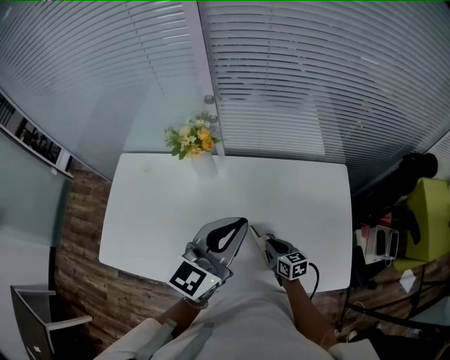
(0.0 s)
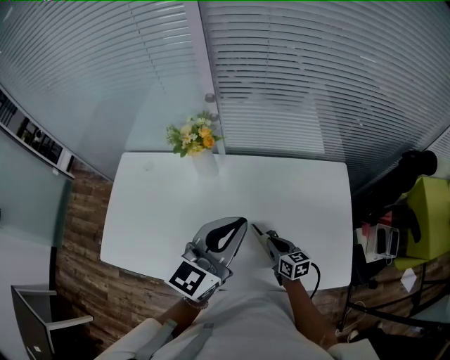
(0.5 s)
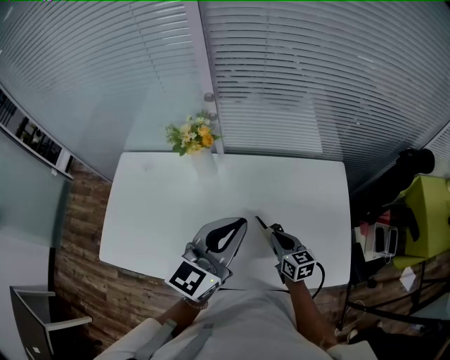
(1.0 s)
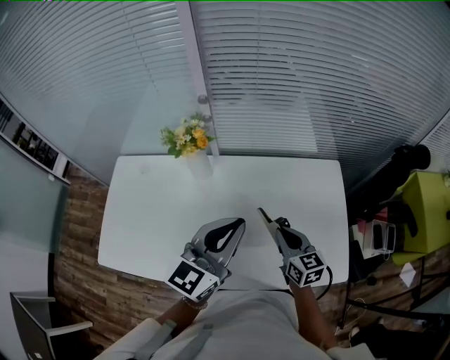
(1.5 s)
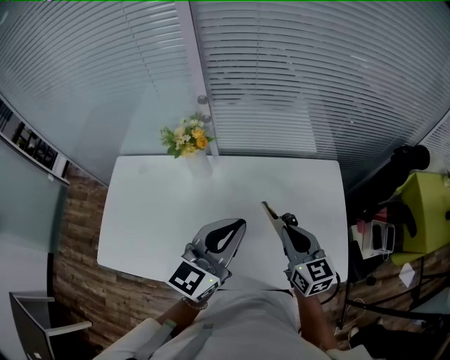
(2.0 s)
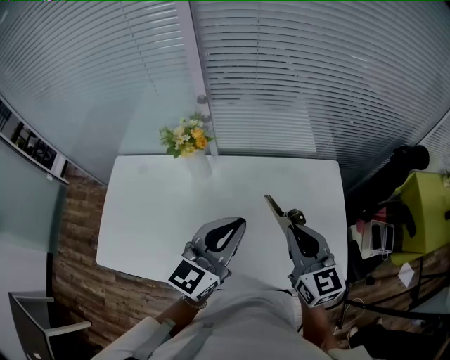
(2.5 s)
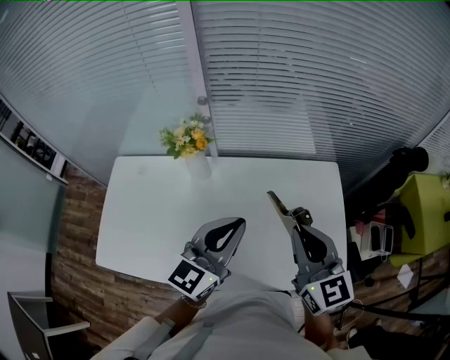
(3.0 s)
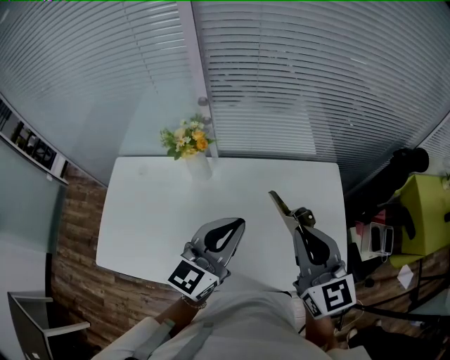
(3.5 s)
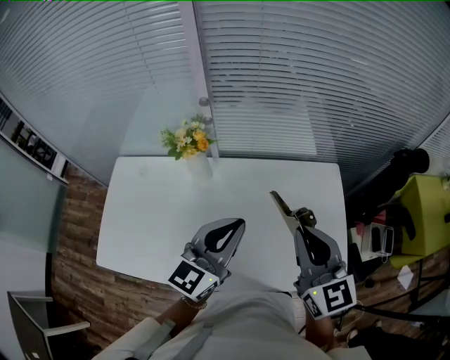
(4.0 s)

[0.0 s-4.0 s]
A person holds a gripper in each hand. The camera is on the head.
0.0 to 2.0 s: The right gripper shifts some 25 cm upward, and rotates about 20 degrees.
2.0 to 4.0 s: The right gripper heads upward, covering some 15 cm.

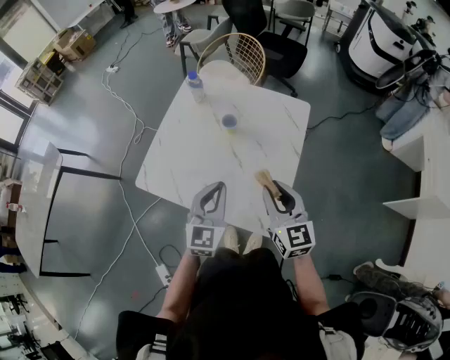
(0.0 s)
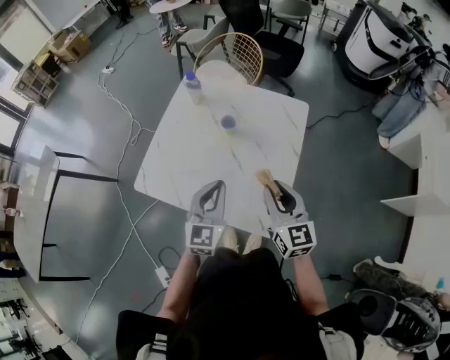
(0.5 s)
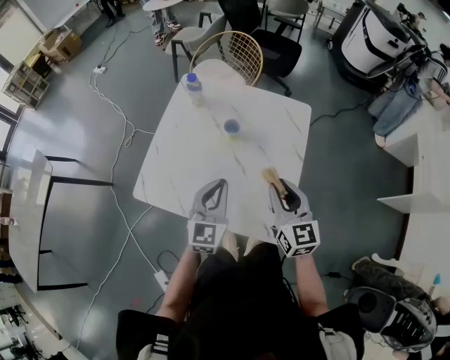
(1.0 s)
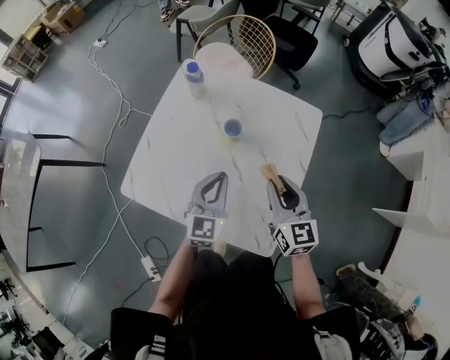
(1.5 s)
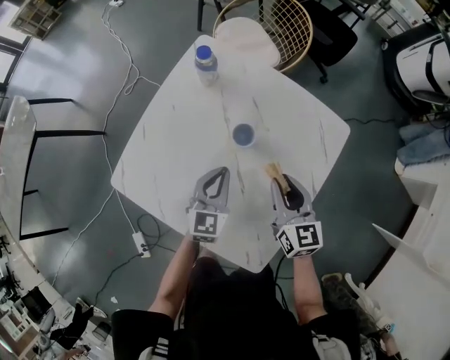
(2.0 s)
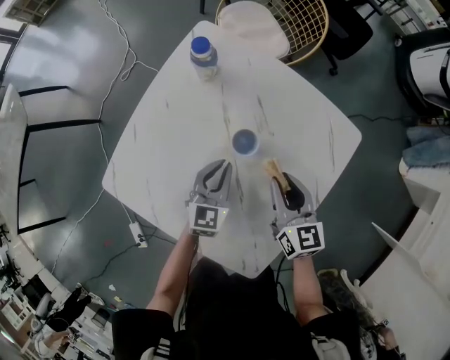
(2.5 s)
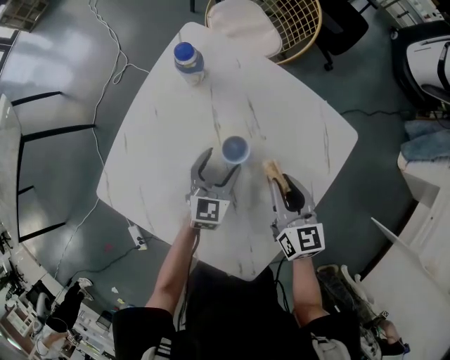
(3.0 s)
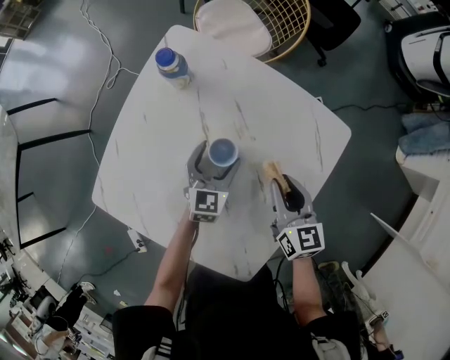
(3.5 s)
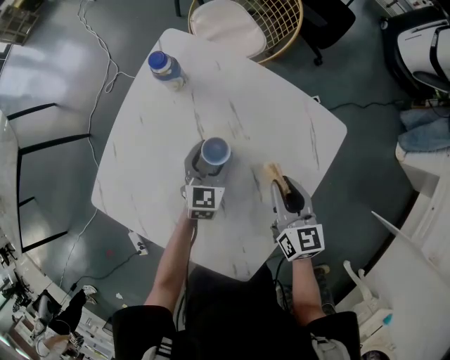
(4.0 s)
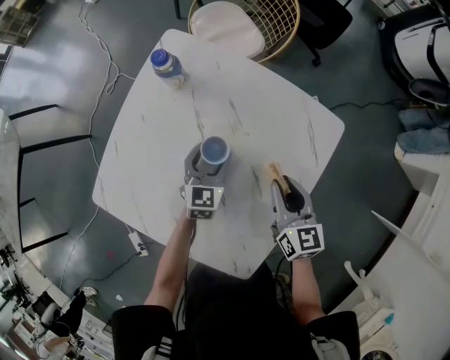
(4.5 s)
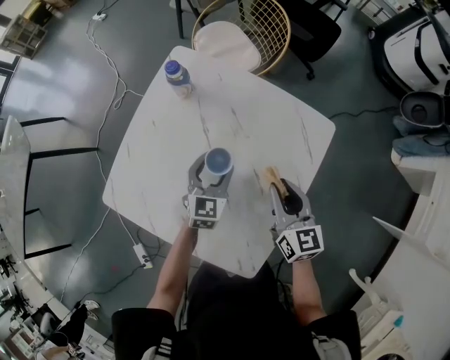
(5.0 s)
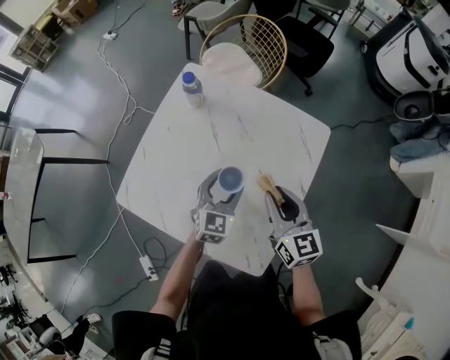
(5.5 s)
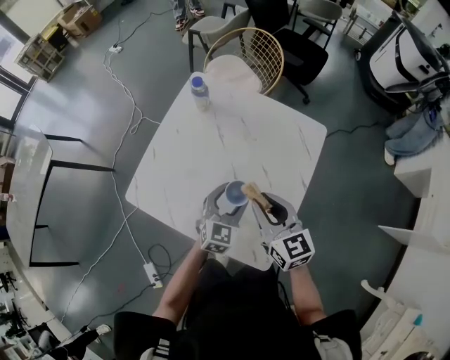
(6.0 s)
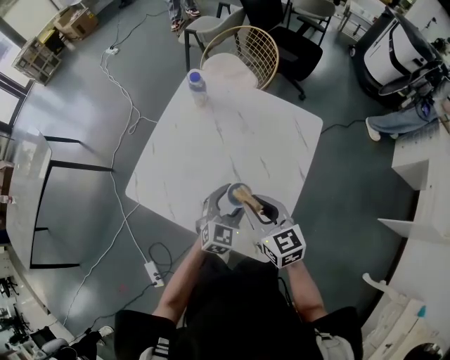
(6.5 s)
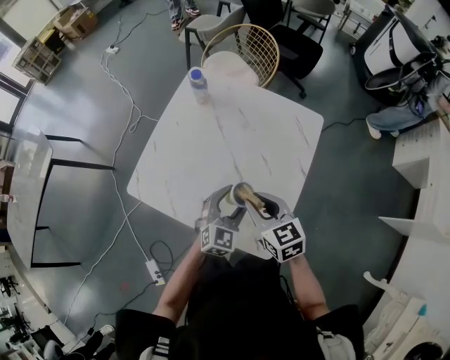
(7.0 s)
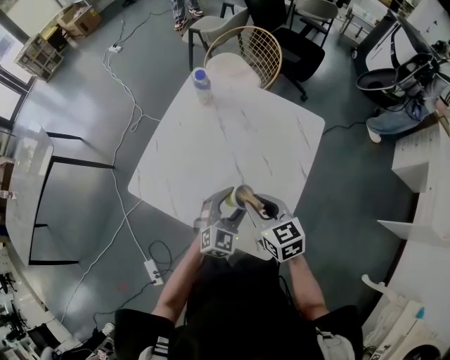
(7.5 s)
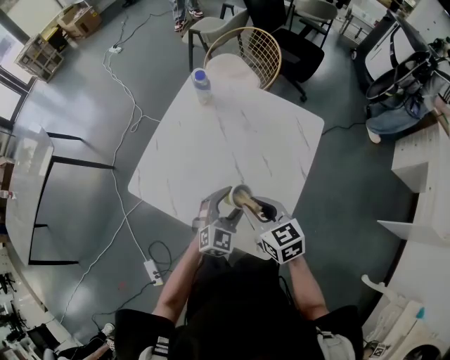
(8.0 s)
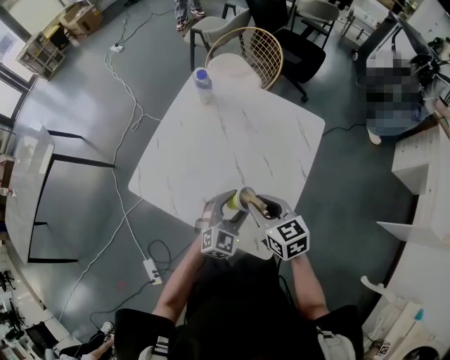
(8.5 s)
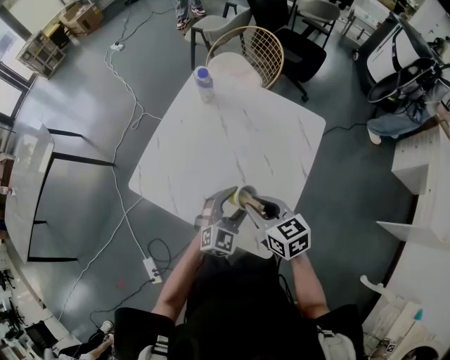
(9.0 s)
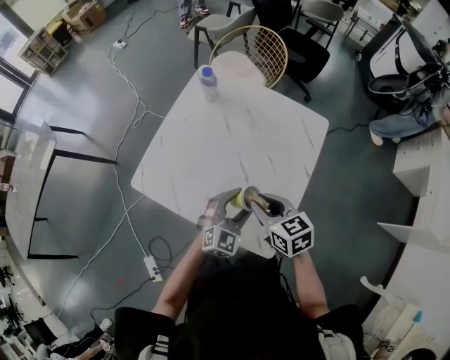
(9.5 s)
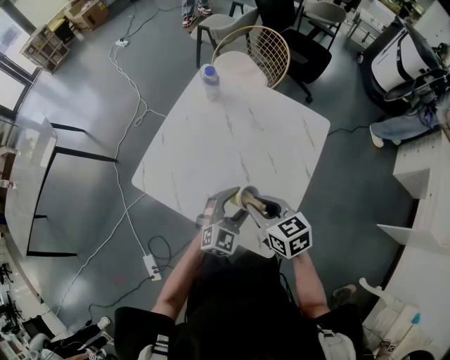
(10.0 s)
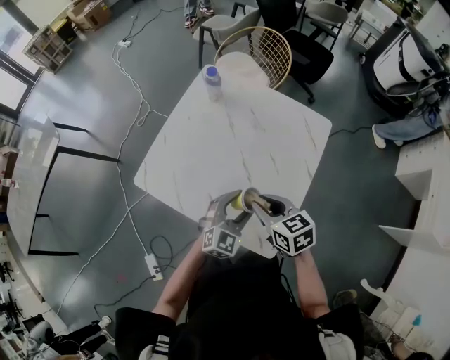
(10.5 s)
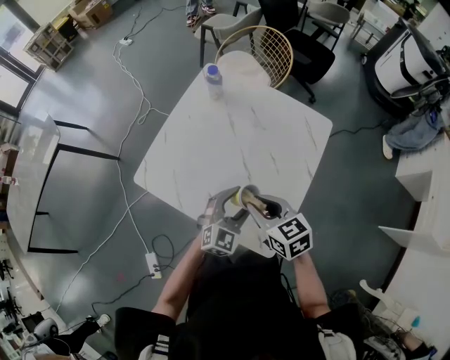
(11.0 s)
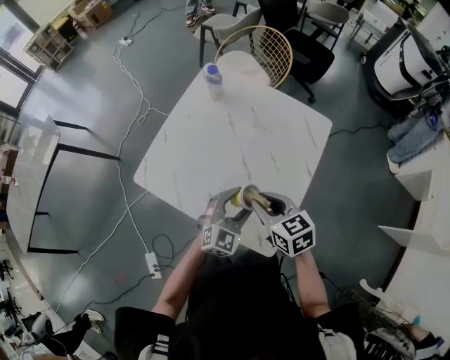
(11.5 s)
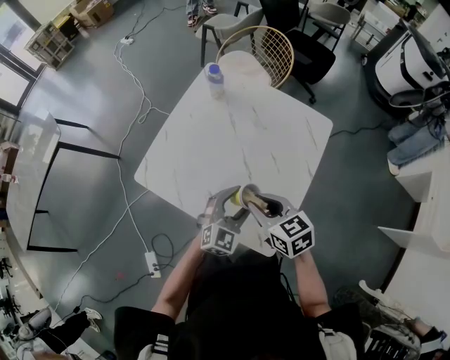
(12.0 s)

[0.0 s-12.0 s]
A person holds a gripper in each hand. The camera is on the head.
0.0 to 2.0 s: Both grippers move forward and downward, about 25 cm.
2.0 to 4.0 s: The right gripper travels to the right and downward by approximately 10 cm. Meanwhile the left gripper shifts approximately 15 cm forward and downward, and opens its fingers.
4.0 to 6.0 s: The right gripper travels upward, backward and to the left by roughly 25 cm. The left gripper heads backward and upward, covering approximately 25 cm.
6.0 to 8.0 s: Both grippers travel together backward, about 5 cm.
8.0 to 12.0 s: There are only small adjustments of the grippers.

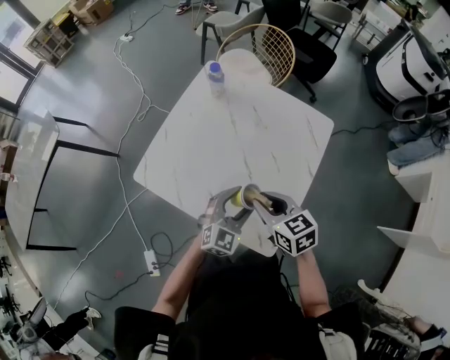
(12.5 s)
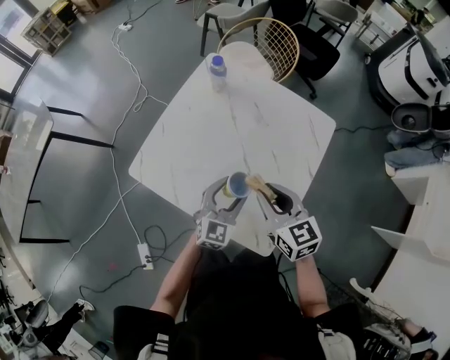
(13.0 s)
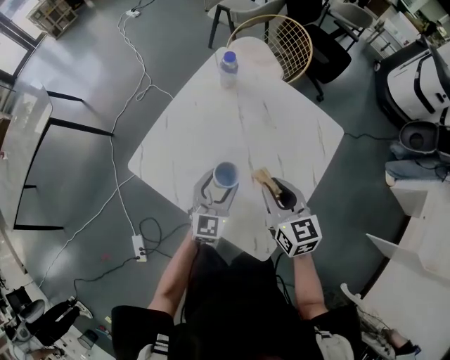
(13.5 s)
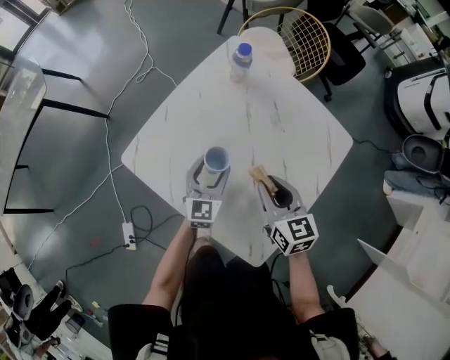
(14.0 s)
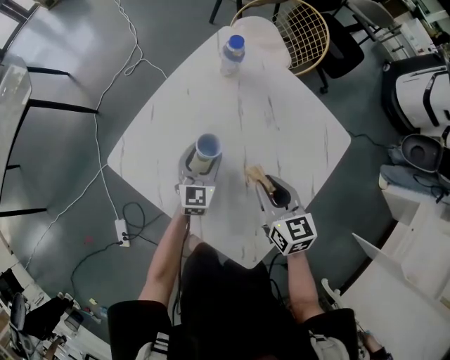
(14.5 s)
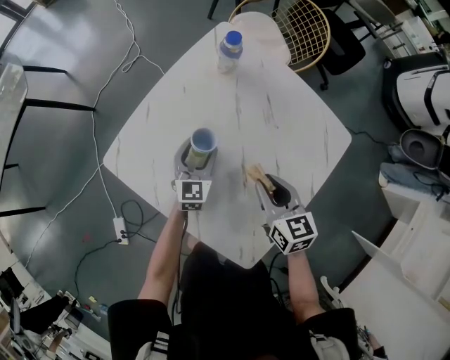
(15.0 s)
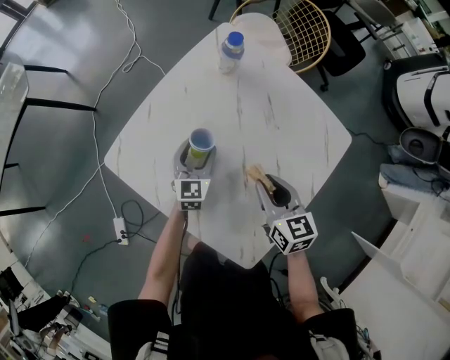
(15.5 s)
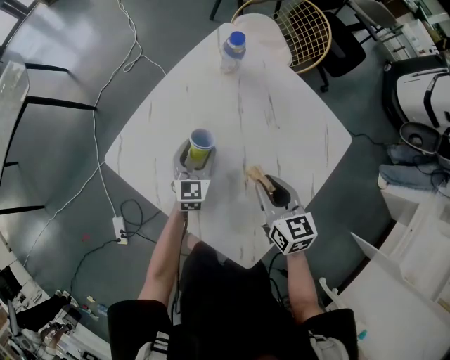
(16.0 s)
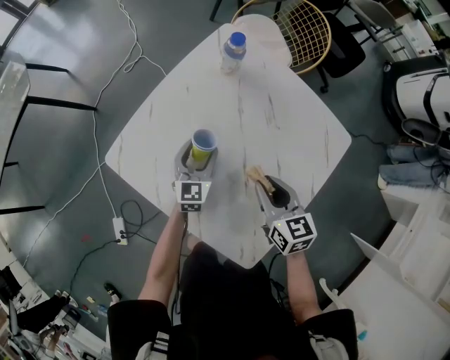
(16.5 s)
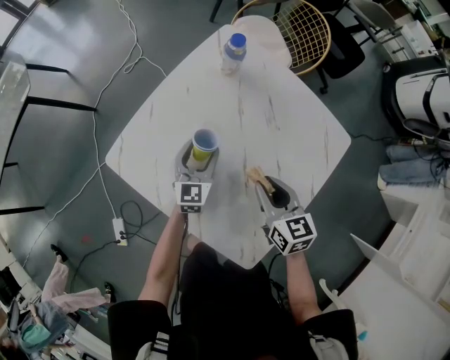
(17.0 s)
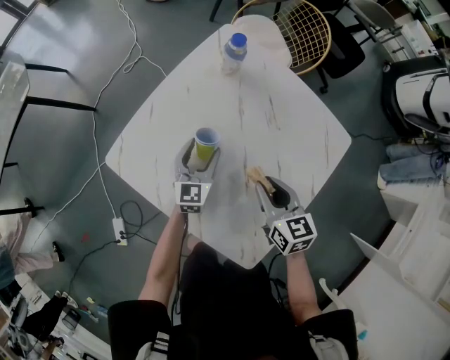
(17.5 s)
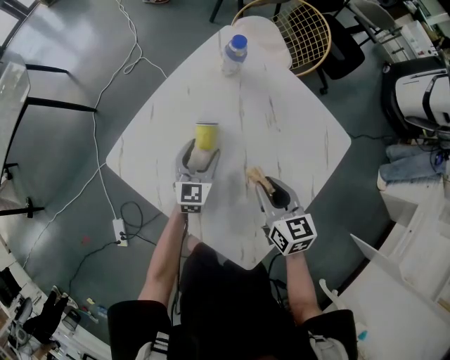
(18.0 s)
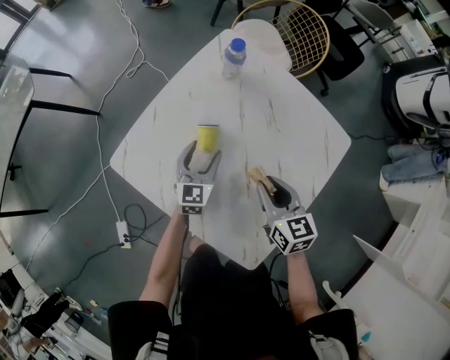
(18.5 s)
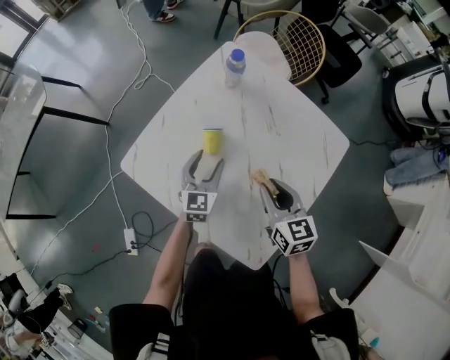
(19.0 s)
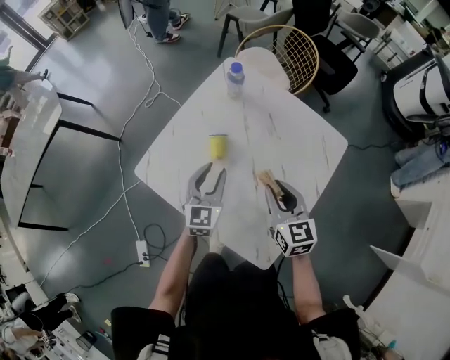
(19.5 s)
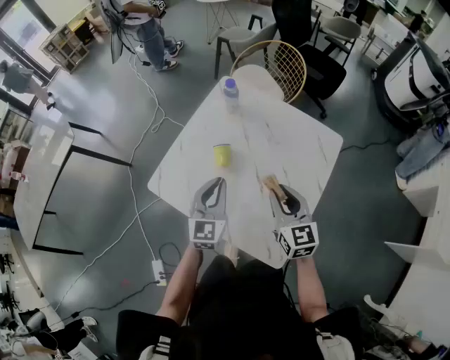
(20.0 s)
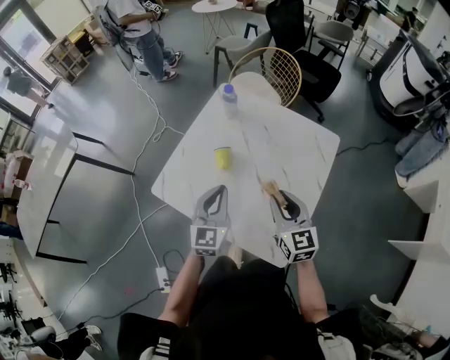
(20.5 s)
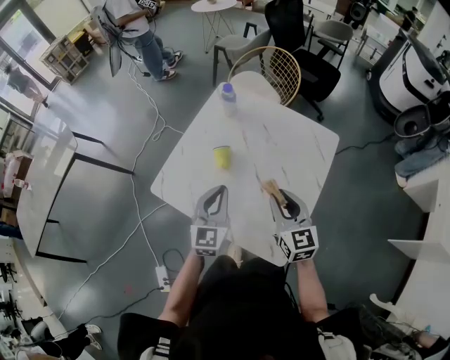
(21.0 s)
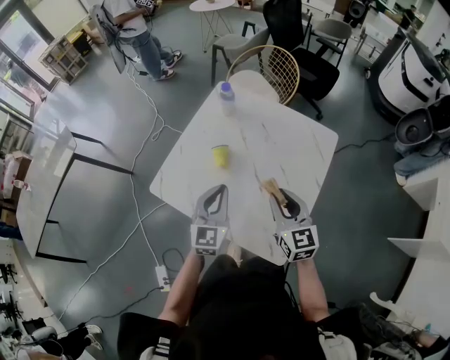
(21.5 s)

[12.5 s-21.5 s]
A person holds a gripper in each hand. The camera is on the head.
12.5 to 14.5 s: The left gripper heads forward, downward and to the left, covering roughly 25 cm, and changes its angle by about 40 degrees, while the right gripper shifts about 15 cm forward and downward.
14.5 to 17.0 s: The grippers make only small movements.
17.0 to 19.5 s: The left gripper heads upward and backward, covering some 15 cm. The right gripper heads upward, covering roughly 10 cm.
19.5 to 21.5 s: The right gripper travels backward by about 5 cm. The left gripper travels backward and upward by roughly 10 cm, and closes.

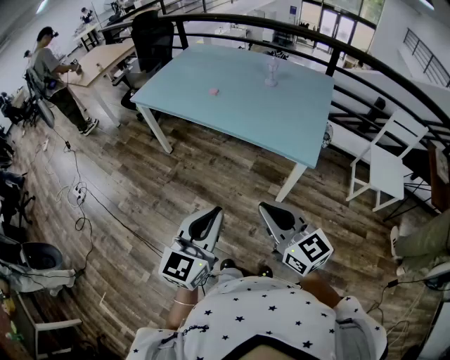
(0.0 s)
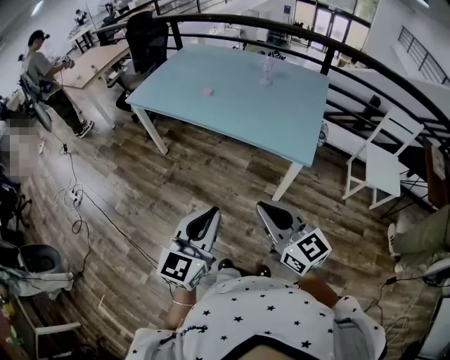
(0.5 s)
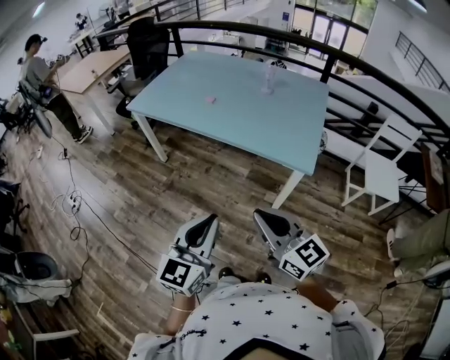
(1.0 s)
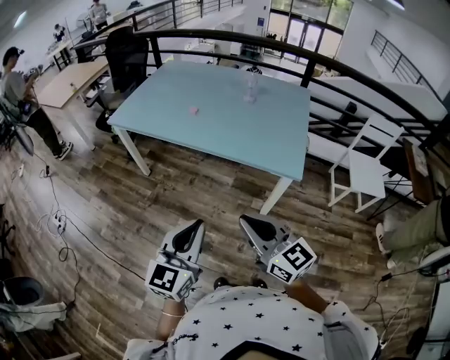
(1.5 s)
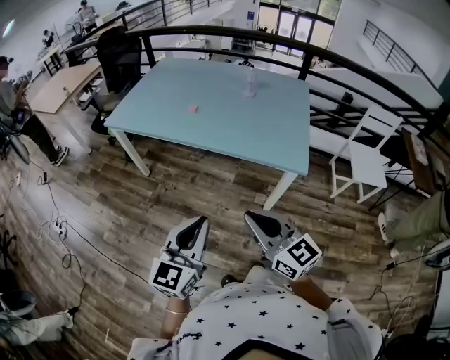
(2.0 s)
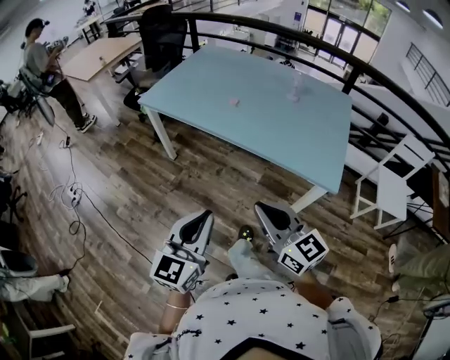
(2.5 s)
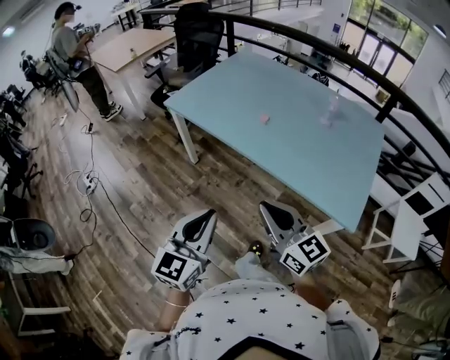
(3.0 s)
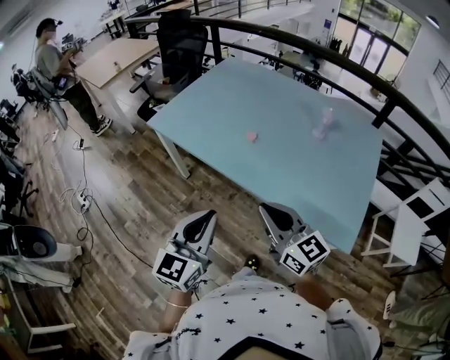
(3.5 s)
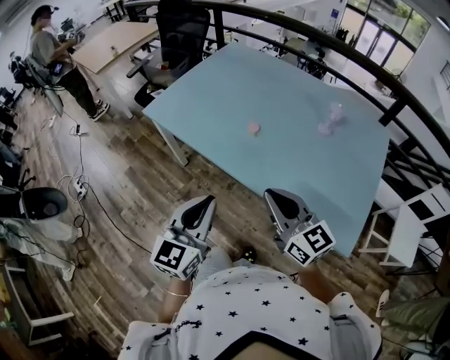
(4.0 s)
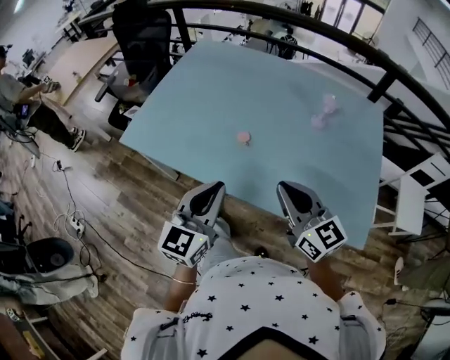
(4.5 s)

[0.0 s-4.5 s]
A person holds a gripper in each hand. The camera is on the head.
0.0 to 2.0 s: Both grippers move to the left and forward, approximately 10 cm.
2.0 to 4.5 s: Both grippers are carried forward, roughly 40 cm.
